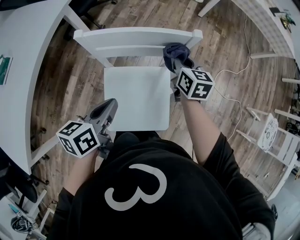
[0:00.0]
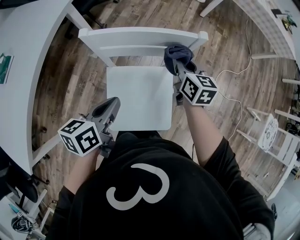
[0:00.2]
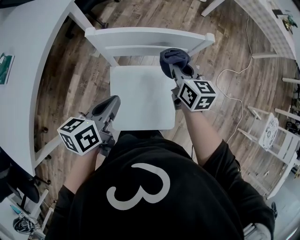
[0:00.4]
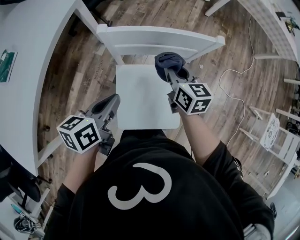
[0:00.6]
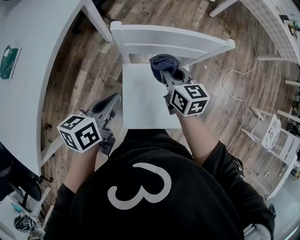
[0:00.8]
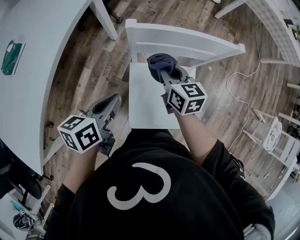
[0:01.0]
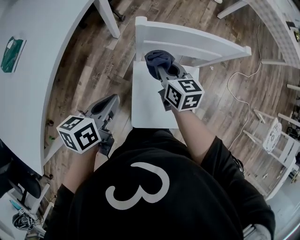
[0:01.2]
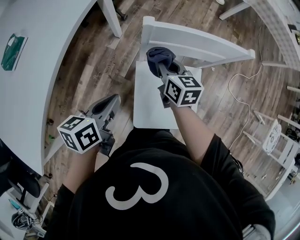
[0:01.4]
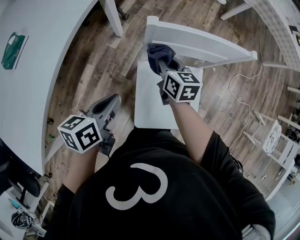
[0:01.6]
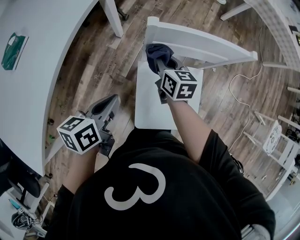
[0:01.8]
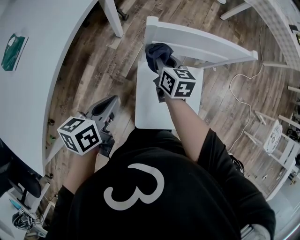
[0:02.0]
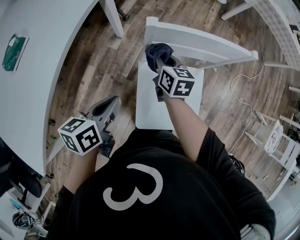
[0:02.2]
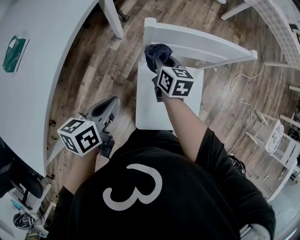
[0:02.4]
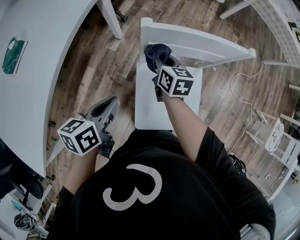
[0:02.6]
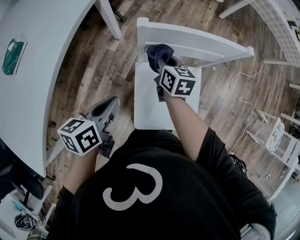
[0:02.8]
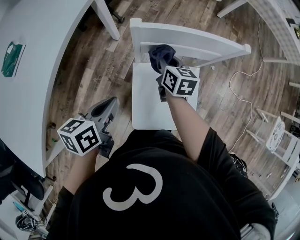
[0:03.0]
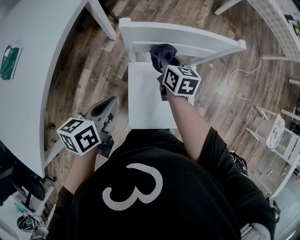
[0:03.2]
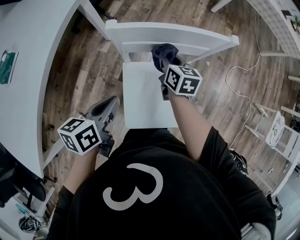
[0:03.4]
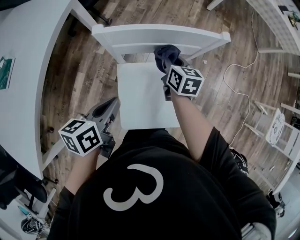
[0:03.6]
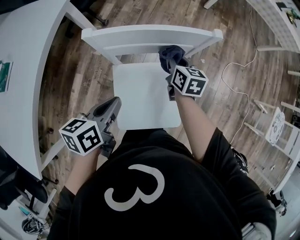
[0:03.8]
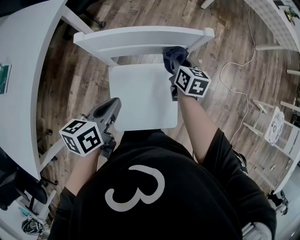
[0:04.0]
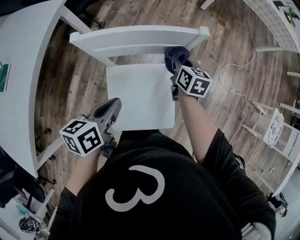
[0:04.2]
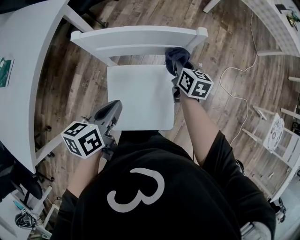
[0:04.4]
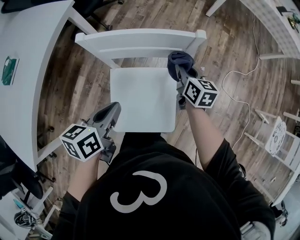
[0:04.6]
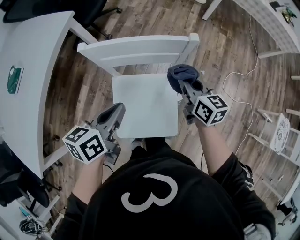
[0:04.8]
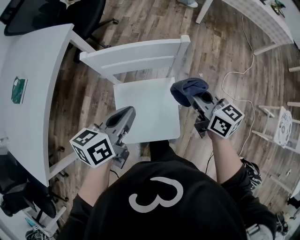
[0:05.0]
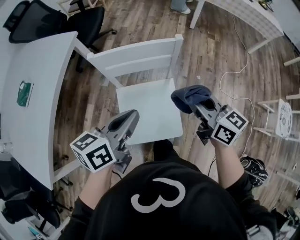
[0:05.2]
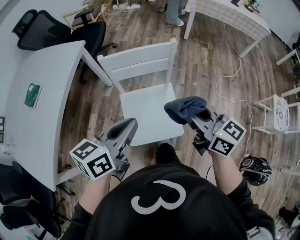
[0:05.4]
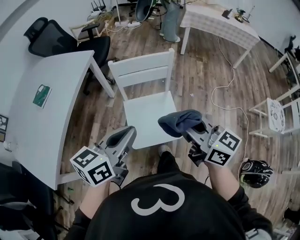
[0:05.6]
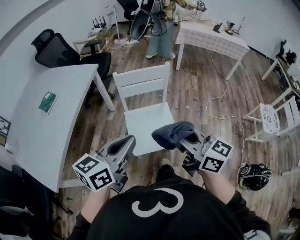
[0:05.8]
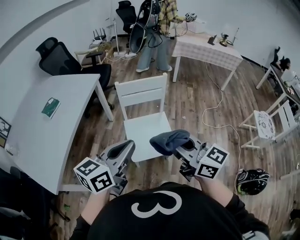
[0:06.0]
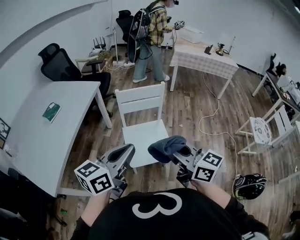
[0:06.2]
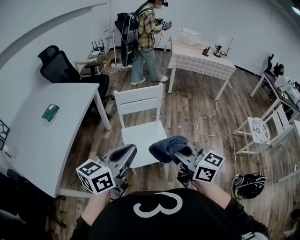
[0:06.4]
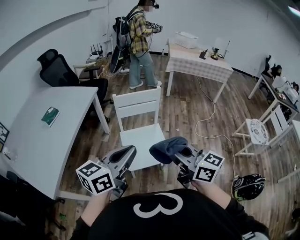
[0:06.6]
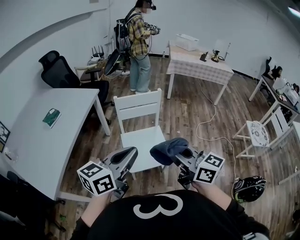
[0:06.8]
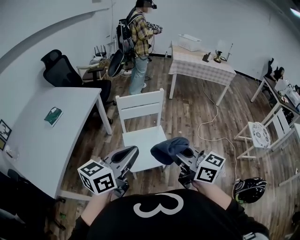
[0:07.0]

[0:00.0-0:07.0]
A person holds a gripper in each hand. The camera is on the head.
0:00.0 to 0:01.4: Both grippers move to the left, some 20 cm.
0:01.4 to 0:02.8: The grippers move only a little.
0:02.8 to 0:04.2: The two grippers go approximately 20 cm to the right.
0:04.2 to 0:05.6: The left gripper travels upward and backward by some 30 cm, and swivels about 30 degrees, while the right gripper travels backward and upward by about 50 cm, and angles its fingers upward, by approximately 30 degrees.
0:05.6 to 0:07.0: The two grippers go about 15 cm backward and upward.

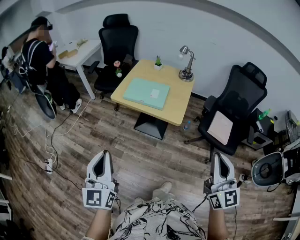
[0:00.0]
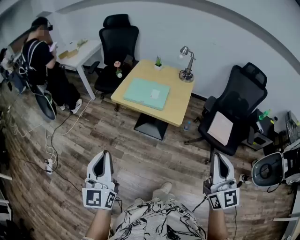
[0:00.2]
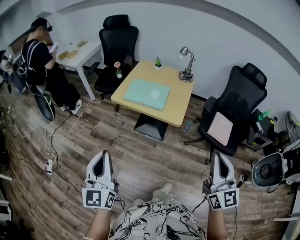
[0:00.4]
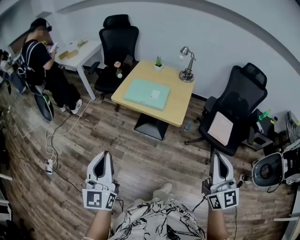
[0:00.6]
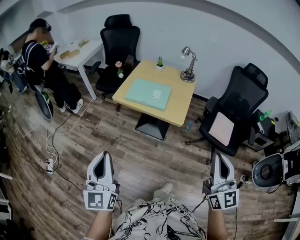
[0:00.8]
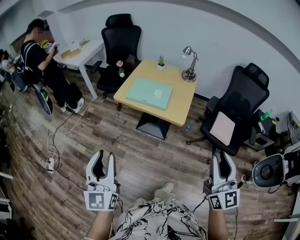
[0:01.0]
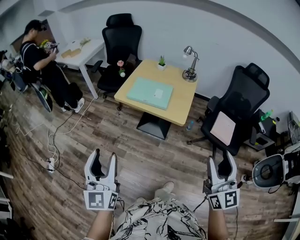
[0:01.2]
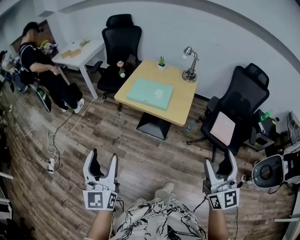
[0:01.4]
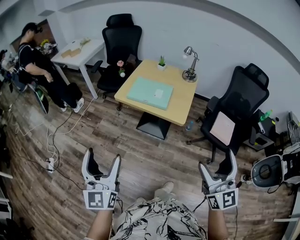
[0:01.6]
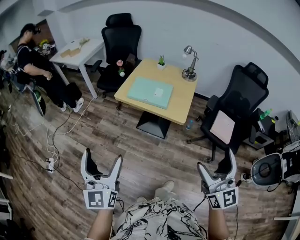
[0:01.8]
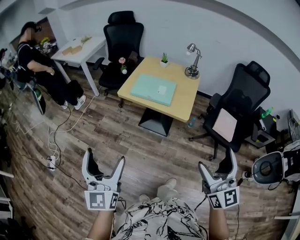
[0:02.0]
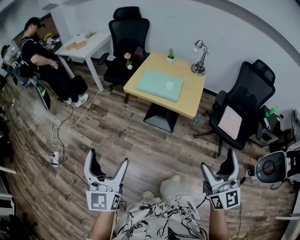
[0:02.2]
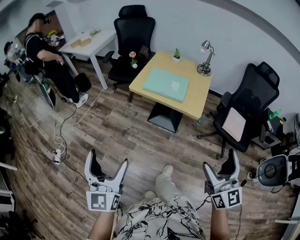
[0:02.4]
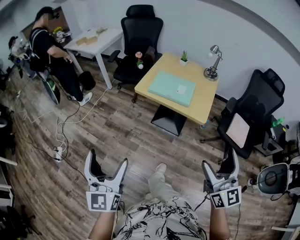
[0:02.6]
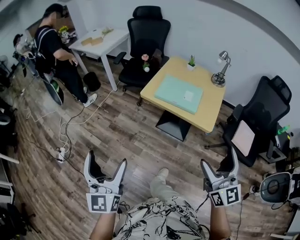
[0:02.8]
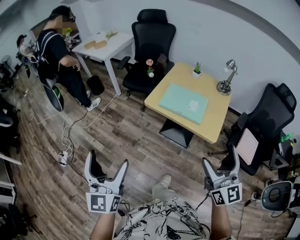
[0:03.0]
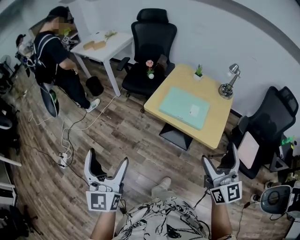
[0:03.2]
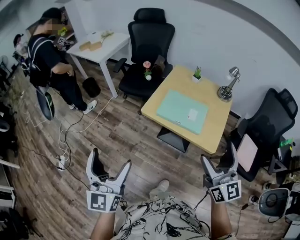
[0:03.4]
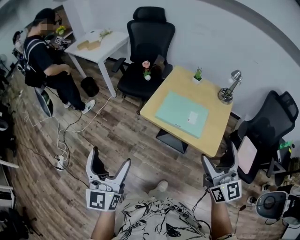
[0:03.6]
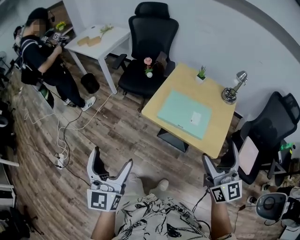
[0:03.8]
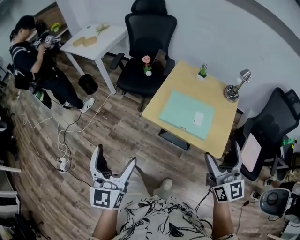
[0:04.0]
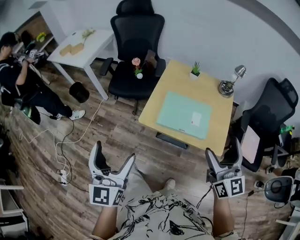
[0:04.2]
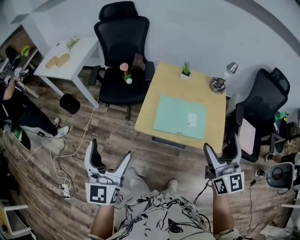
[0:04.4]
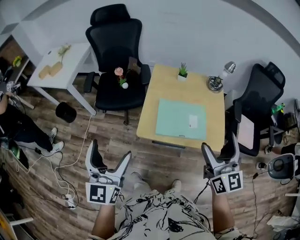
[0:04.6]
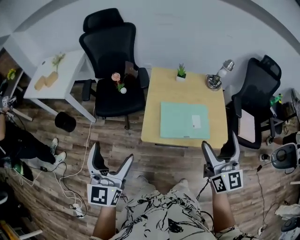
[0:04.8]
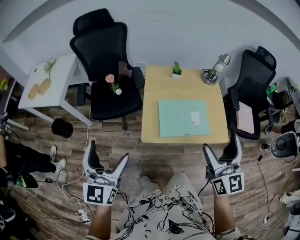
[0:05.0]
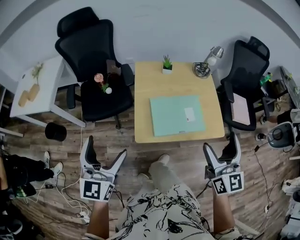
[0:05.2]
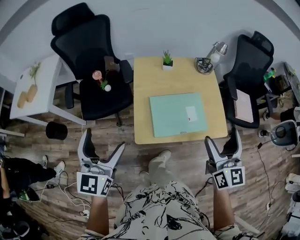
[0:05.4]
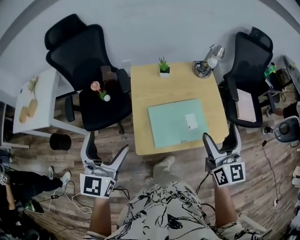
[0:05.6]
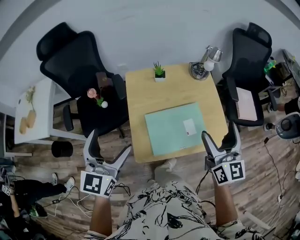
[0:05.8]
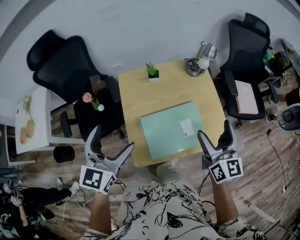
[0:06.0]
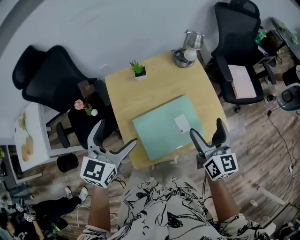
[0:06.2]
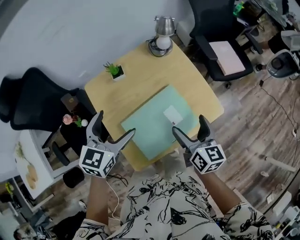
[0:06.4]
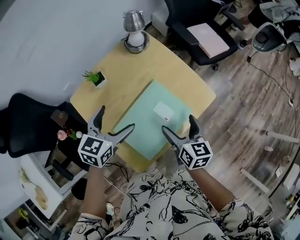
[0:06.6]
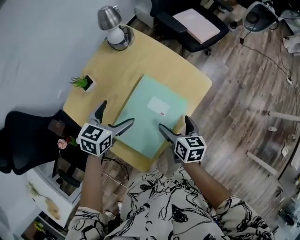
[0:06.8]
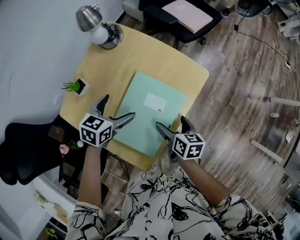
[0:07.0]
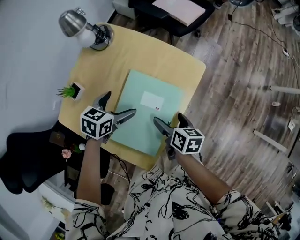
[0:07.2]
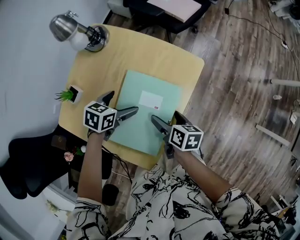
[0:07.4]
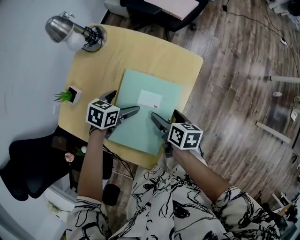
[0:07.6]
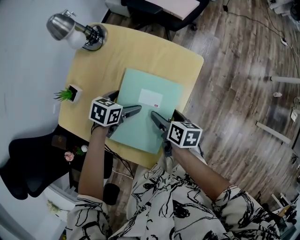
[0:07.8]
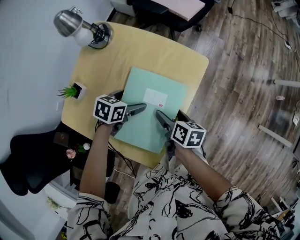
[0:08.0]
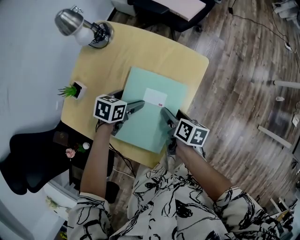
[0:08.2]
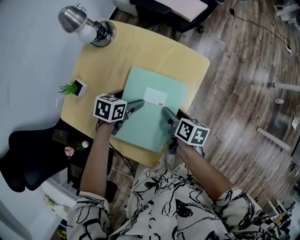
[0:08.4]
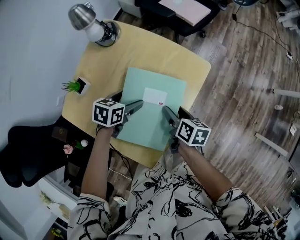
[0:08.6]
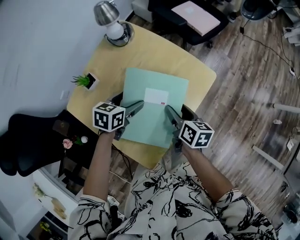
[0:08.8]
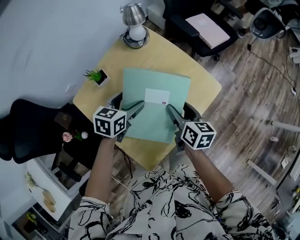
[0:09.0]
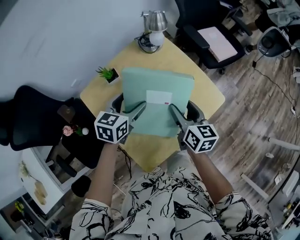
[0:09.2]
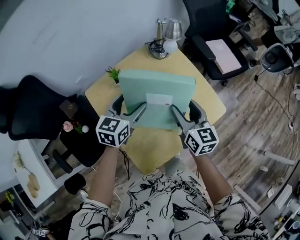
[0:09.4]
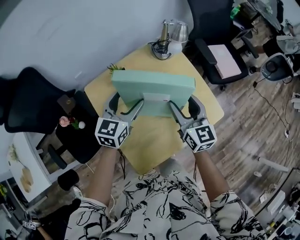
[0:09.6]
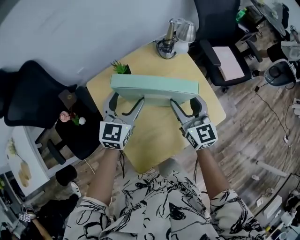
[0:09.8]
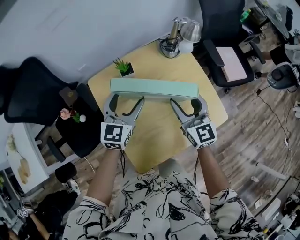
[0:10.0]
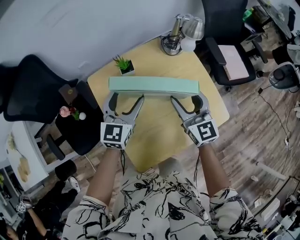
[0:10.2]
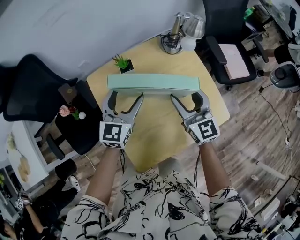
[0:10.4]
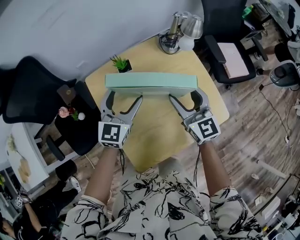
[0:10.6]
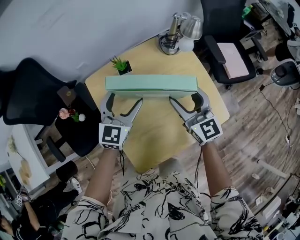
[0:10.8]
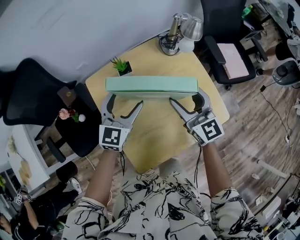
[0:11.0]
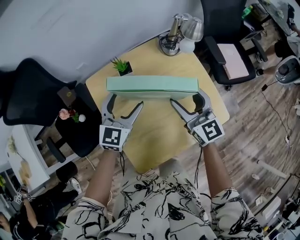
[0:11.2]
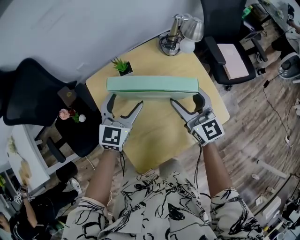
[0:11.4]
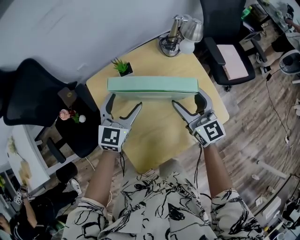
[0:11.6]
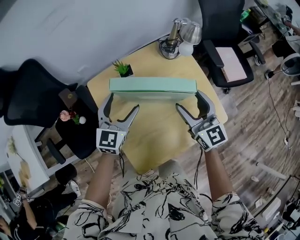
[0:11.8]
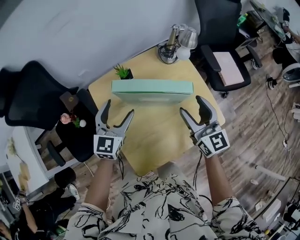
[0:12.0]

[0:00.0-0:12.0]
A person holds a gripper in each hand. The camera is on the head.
0:00.0 to 0:01.6: The right gripper opens; the left gripper opens its fingers.
0:01.6 to 0:03.0: The left gripper heads to the left and forward, covering roughly 15 cm. The right gripper shifts roughly 20 cm forward and to the left.
0:03.0 to 0:04.4: Both grippers travel together forward, about 30 cm. The left gripper swivels roughly 20 degrees.
0:04.4 to 0:06.0: The left gripper ends up roughly 35 cm from where it was, and rotates about 40 degrees, while the right gripper shifts by some 20 cm, and changes its angle by about 30 degrees.
0:06.0 to 0:07.6: Both grippers travel together downward, about 30 cm. The right gripper points its fingers about 40 degrees further downward; the left gripper tilts its fingers some 40 degrees downward.
0:07.6 to 0:09.0: The grippers both shift upward by roughly 10 cm. The right gripper rotates approximately 30 degrees, and closes up, while the left gripper rotates some 30 degrees.
0:09.0 to 0:10.4: The right gripper moves some 15 cm, and twists approximately 40 degrees counterclockwise, seen from behind; the left gripper moves roughly 15 cm, and turns by approximately 40 degrees.
0:10.4 to 0:12.0: The right gripper changes place by about 5 cm.

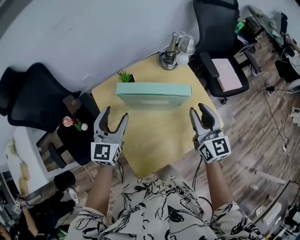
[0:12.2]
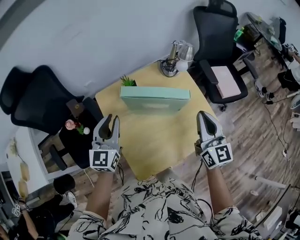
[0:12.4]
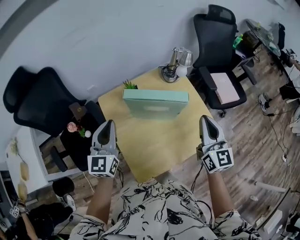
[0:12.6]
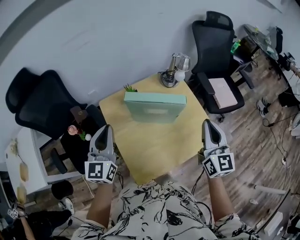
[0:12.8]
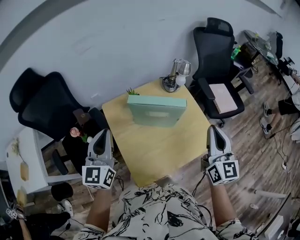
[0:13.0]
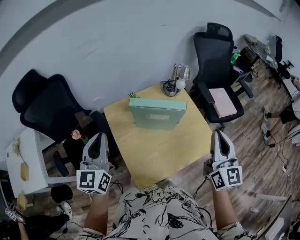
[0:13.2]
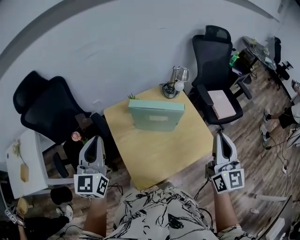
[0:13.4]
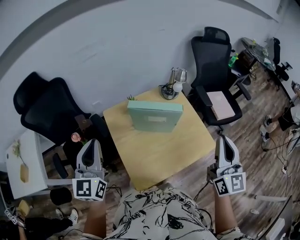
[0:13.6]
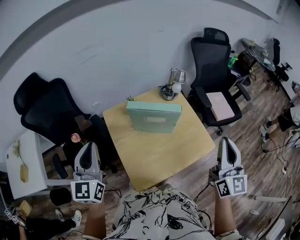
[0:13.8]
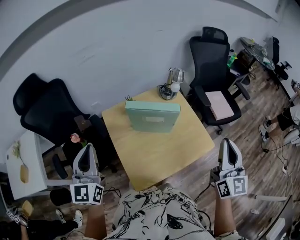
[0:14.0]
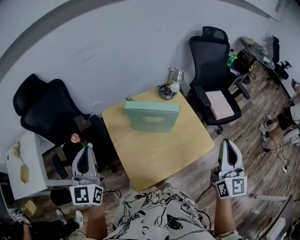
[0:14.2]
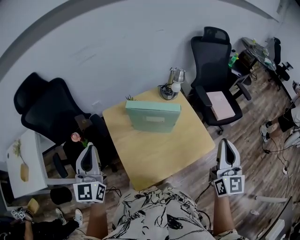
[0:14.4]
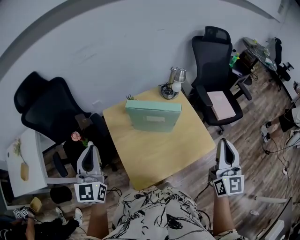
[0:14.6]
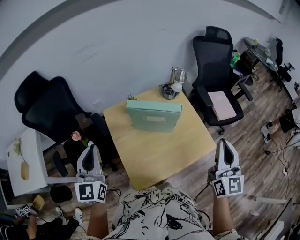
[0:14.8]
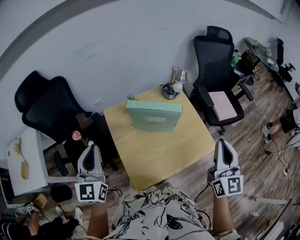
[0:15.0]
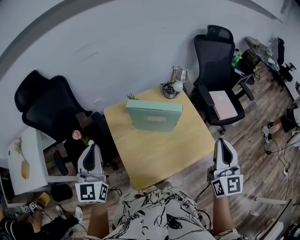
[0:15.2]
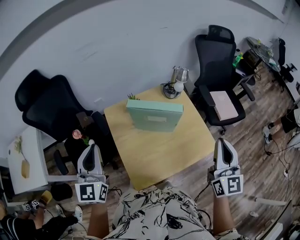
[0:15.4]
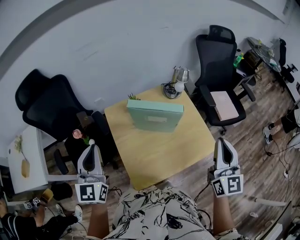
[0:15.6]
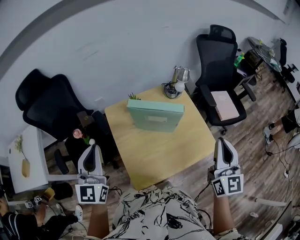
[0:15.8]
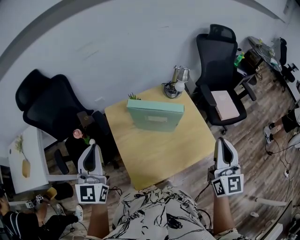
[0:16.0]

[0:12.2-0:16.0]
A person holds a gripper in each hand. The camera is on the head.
0:12.2 to 0:13.4: The left gripper travels upward, backward and to the left by roughly 20 cm, and closes its fingers. Meanwhile the right gripper travels upward and backward by some 20 cm.
0:13.4 to 0:16.0: The grippers move only a little.

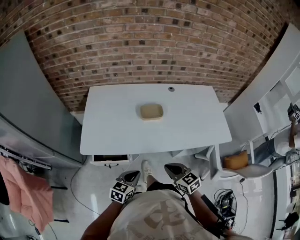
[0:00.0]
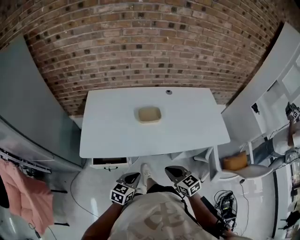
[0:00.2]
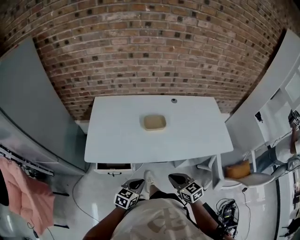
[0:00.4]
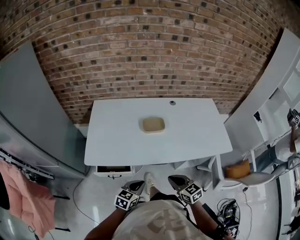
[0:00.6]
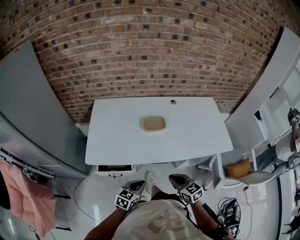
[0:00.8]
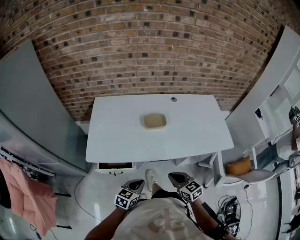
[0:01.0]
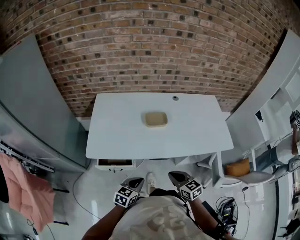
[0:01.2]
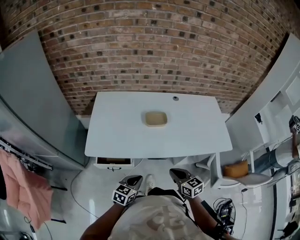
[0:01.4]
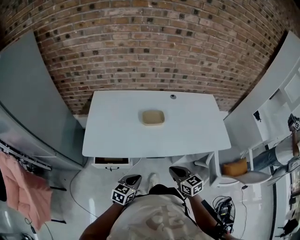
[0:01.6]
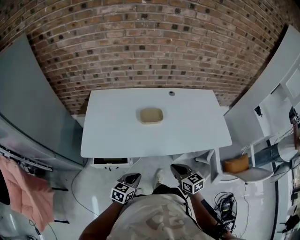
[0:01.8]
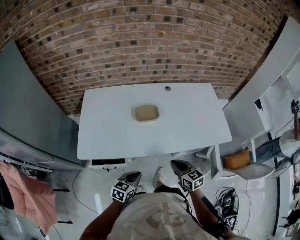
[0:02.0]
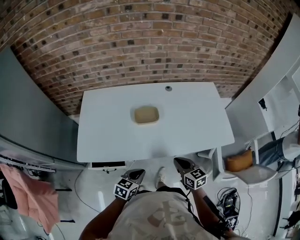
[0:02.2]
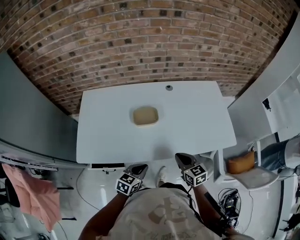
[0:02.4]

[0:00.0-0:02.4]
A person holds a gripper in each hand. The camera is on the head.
0:00.0 to 0:01.2: The grippers move only a little.
0:01.2 to 0:02.4: Both grippers move forward and to the right, some 15 cm.
